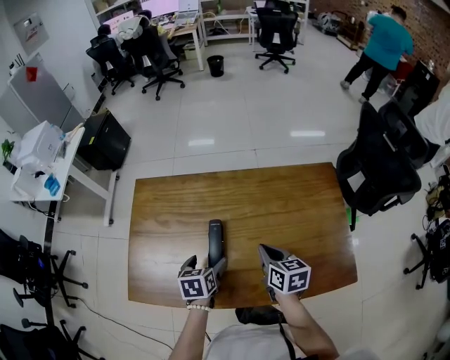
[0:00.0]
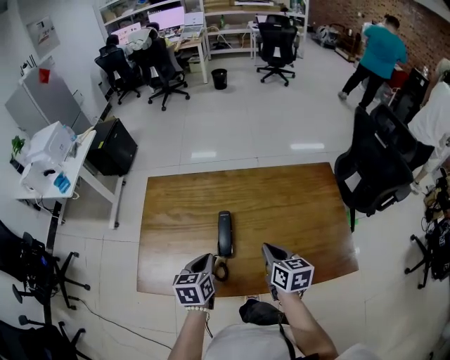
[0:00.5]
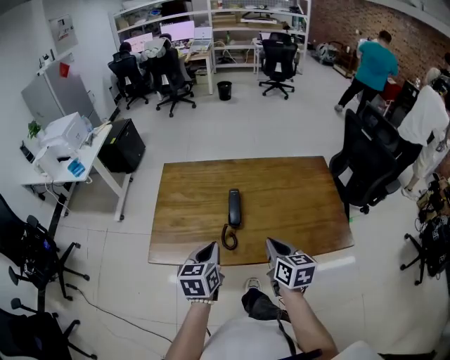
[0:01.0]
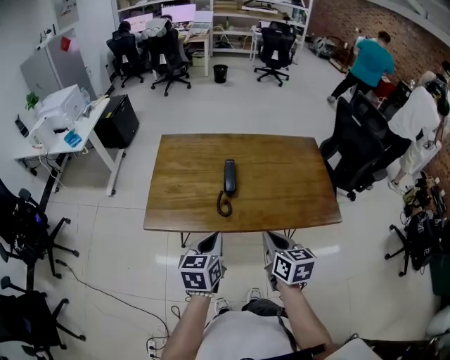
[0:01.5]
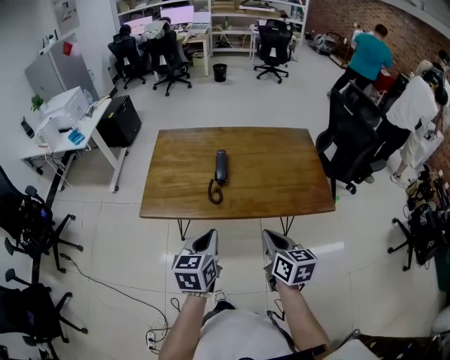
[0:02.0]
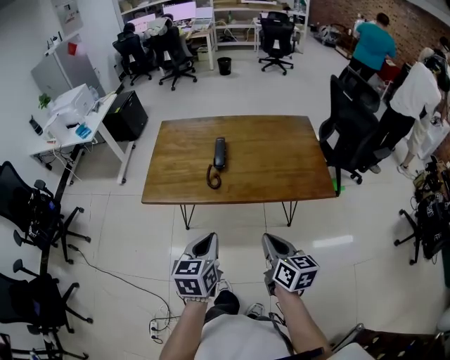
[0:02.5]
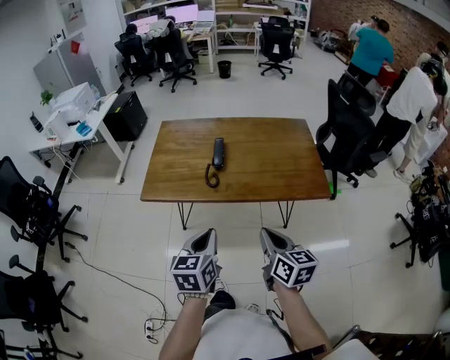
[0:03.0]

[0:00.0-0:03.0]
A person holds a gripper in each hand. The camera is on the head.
0:00.0 to 0:01.5: The left gripper heads backward and upward, covering roughly 30 cm, changes its angle by about 30 degrees, and closes its fingers. The right gripper travels backward by roughly 25 cm.
0:01.5 to 0:03.0: The two grippers go about 15 cm backward.

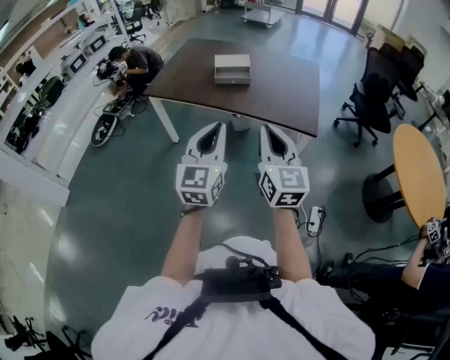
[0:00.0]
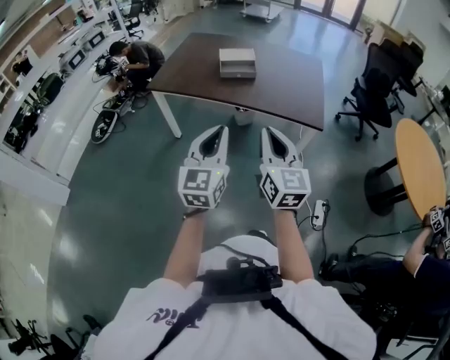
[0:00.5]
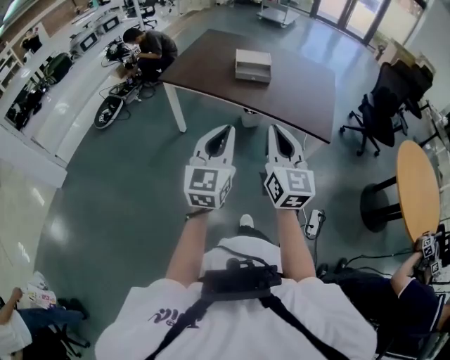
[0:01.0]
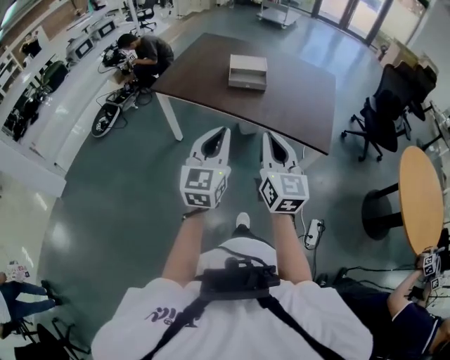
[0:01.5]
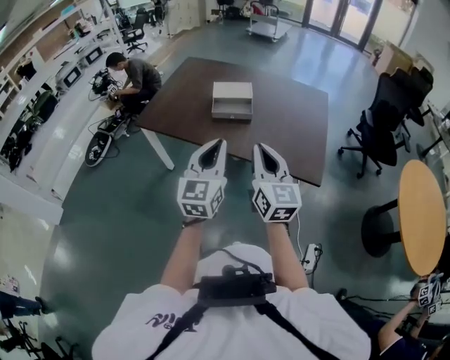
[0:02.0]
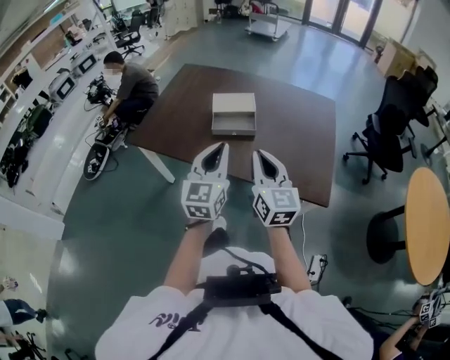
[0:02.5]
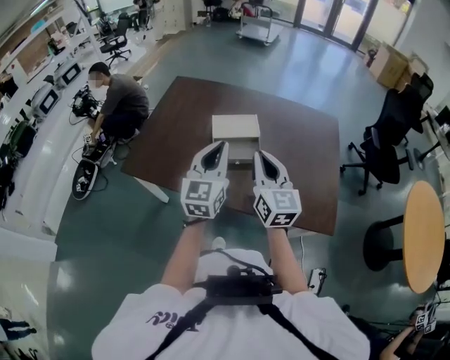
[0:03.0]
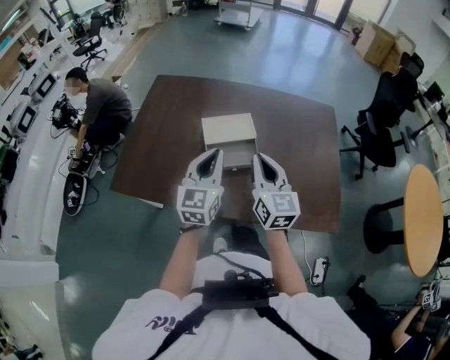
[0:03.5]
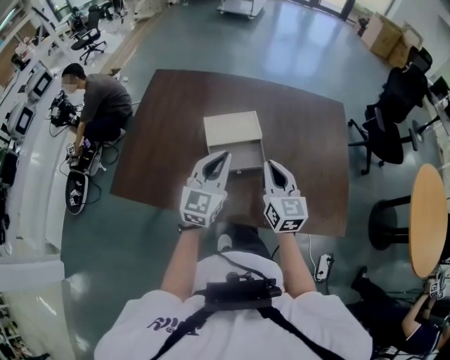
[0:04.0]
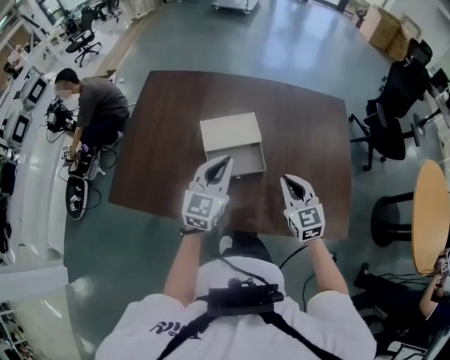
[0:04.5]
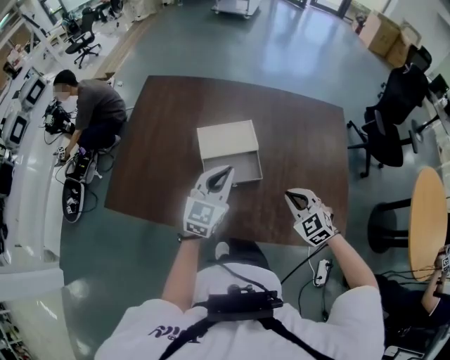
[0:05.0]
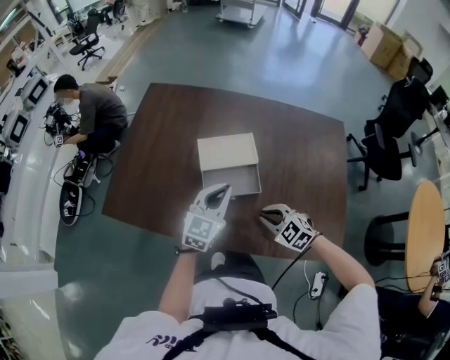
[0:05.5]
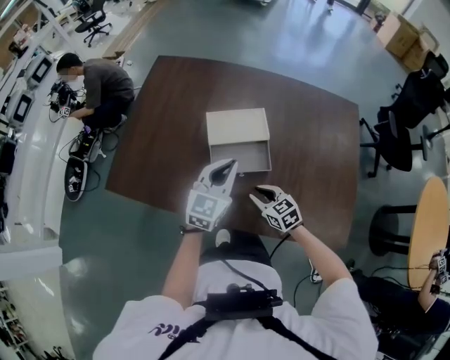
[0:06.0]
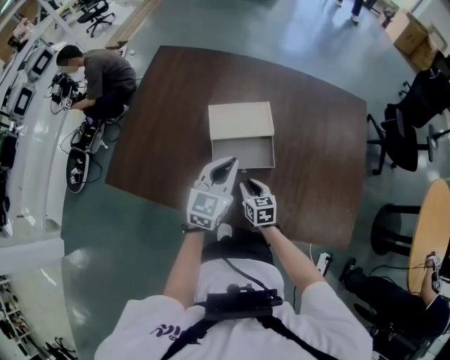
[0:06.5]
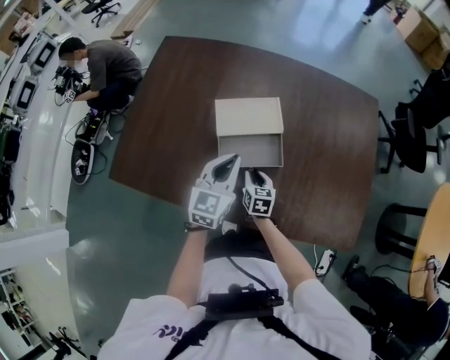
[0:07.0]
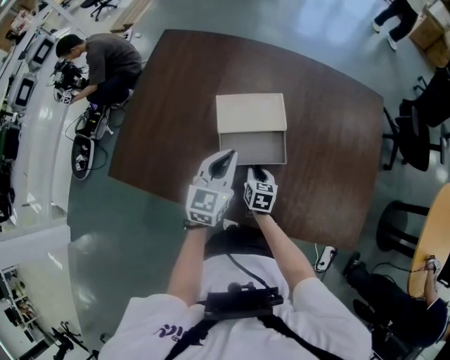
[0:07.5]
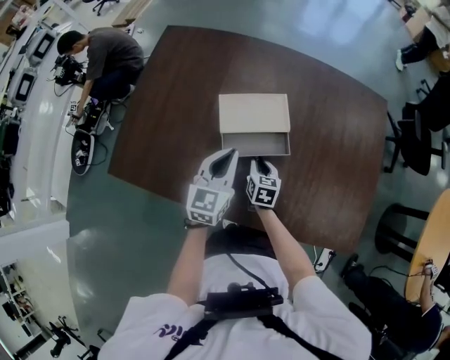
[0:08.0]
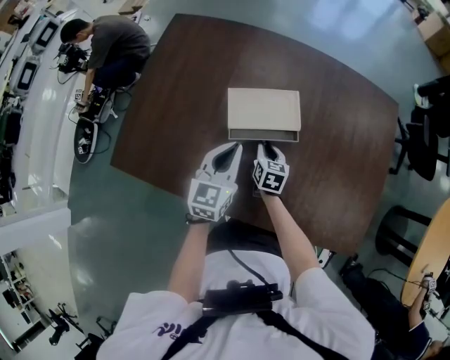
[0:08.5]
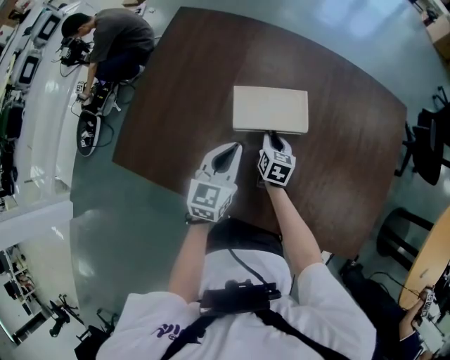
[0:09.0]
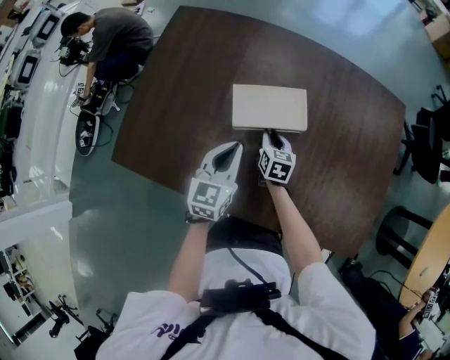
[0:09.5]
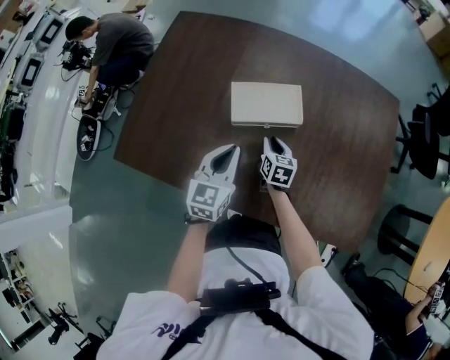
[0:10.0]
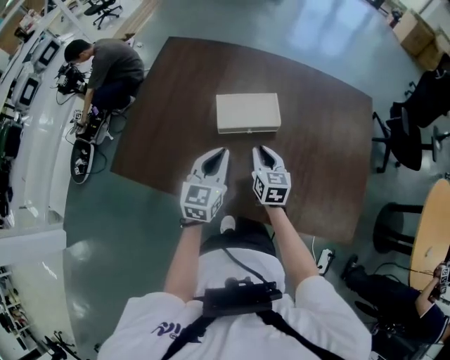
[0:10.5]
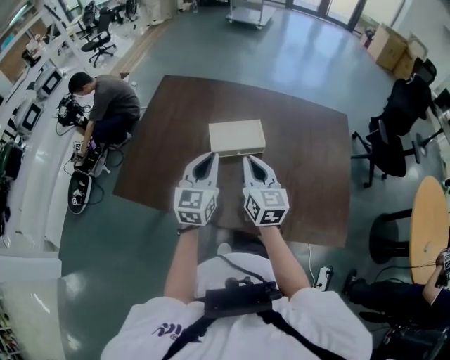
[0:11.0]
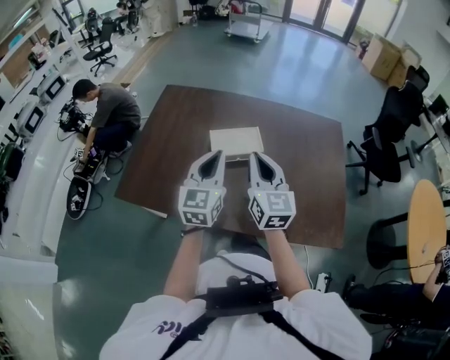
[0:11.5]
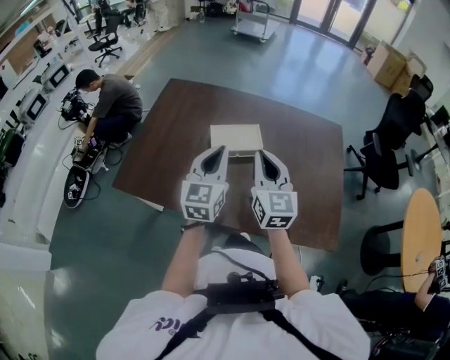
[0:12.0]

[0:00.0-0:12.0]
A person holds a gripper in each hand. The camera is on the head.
0:00.0 to 0:02.0: The grippers both shift forward by approximately 25 cm.
0:02.0 to 0:04.0: The pair of grippers is taken forward, some 40 cm.
0:04.0 to 0:06.0: The left gripper shifts about 10 cm downward, while the right gripper shifts about 25 cm downward, changes its angle by some 50 degrees, and opens its fingers.
0:06.0 to 0:08.0: The right gripper heads forward and downward, covering about 15 cm, and turns by roughly 40 degrees. The left gripper travels downward by about 5 cm.
0:10.0 to 0:12.0: The right gripper moves upward and backward, roughly 40 cm, and tips its fingers upward by approximately 40 degrees. The left gripper shifts about 20 cm upward and backward.

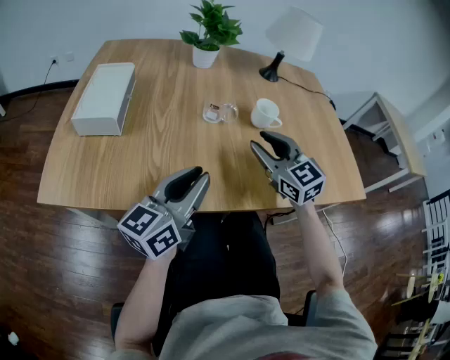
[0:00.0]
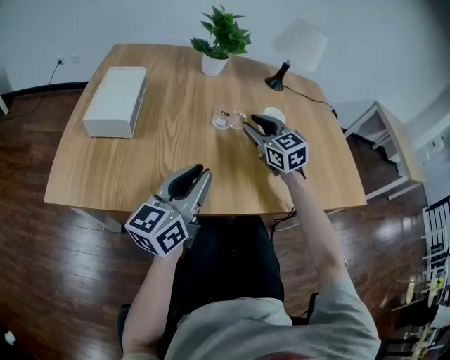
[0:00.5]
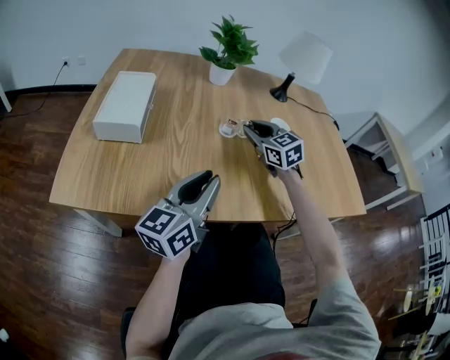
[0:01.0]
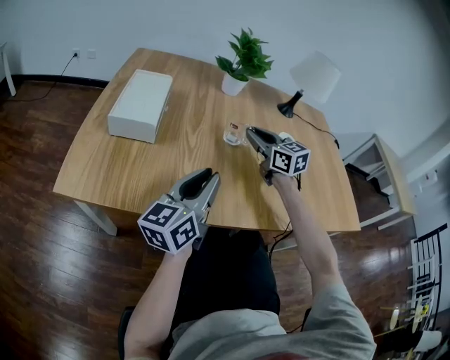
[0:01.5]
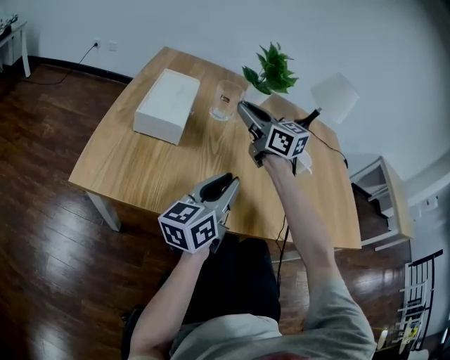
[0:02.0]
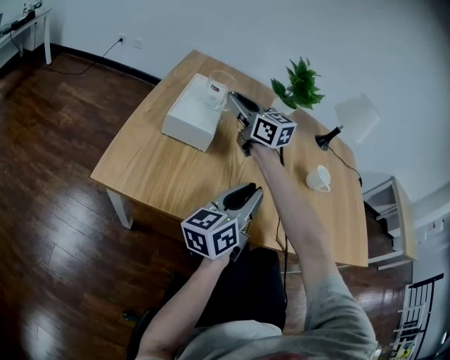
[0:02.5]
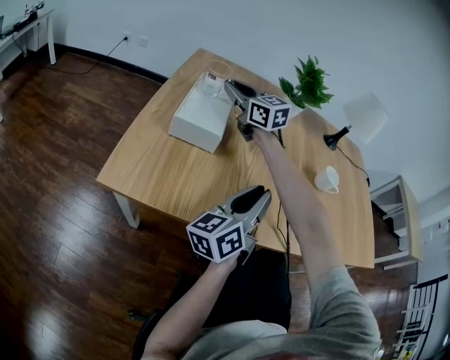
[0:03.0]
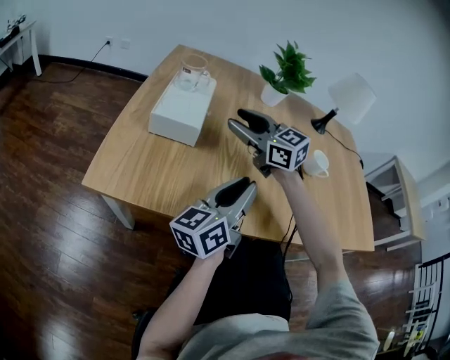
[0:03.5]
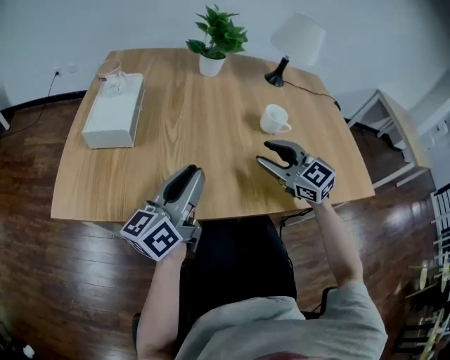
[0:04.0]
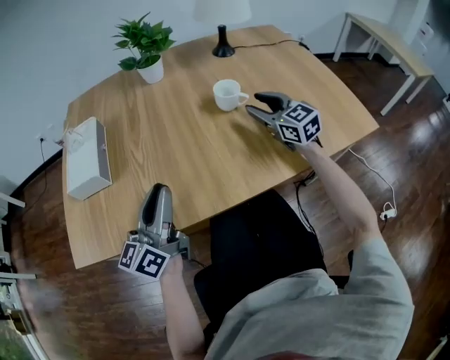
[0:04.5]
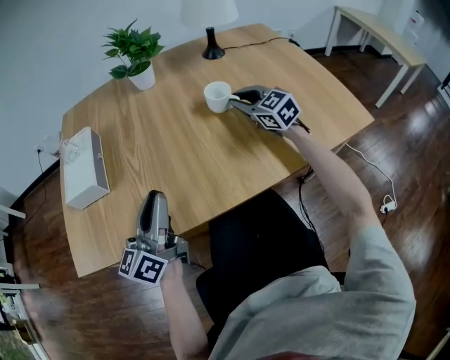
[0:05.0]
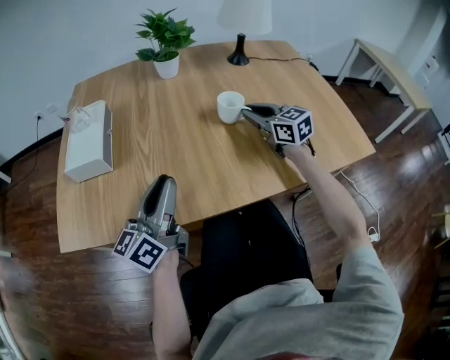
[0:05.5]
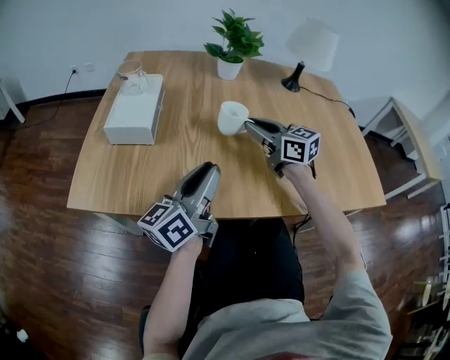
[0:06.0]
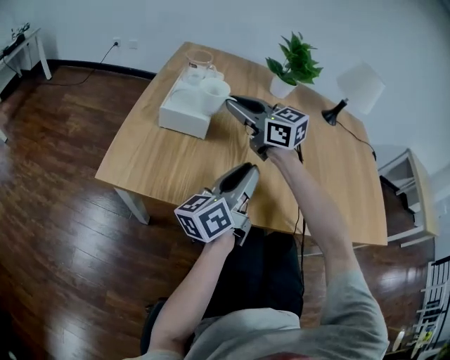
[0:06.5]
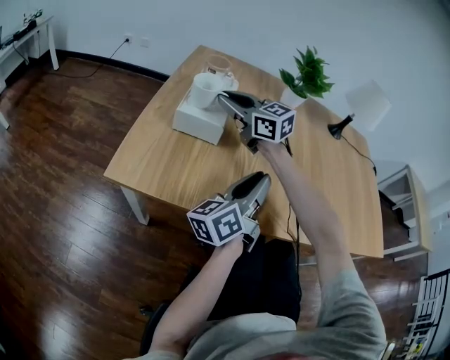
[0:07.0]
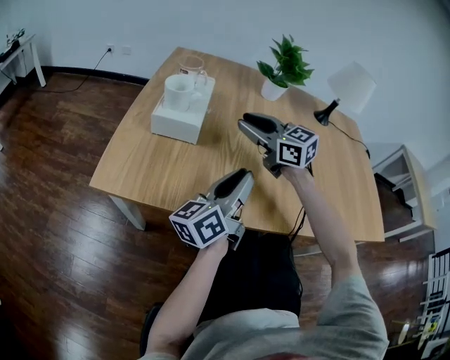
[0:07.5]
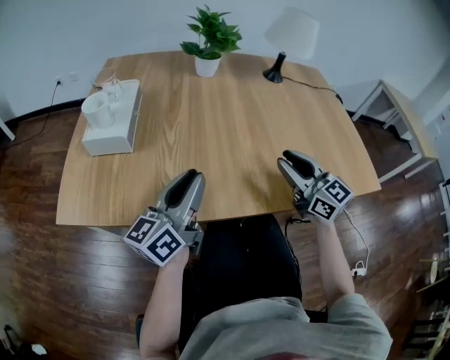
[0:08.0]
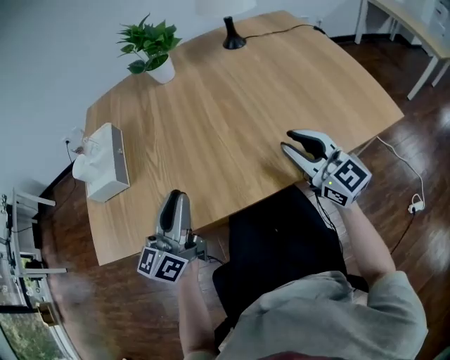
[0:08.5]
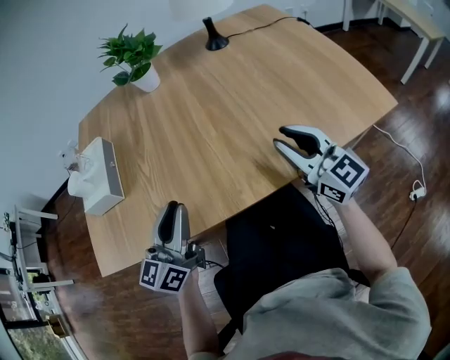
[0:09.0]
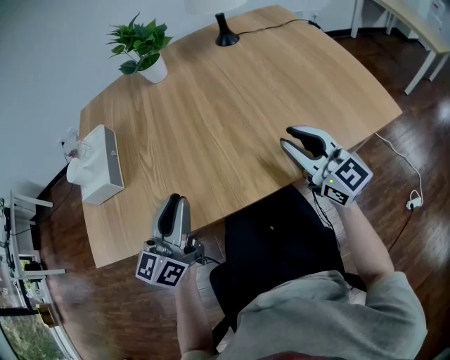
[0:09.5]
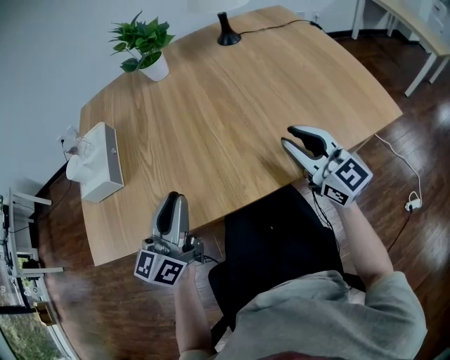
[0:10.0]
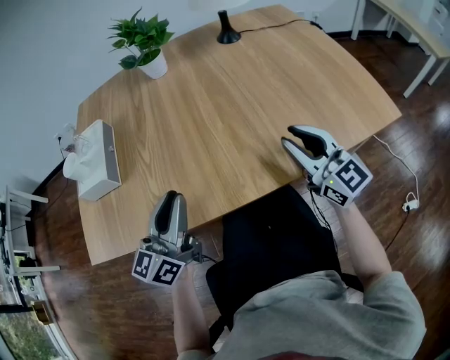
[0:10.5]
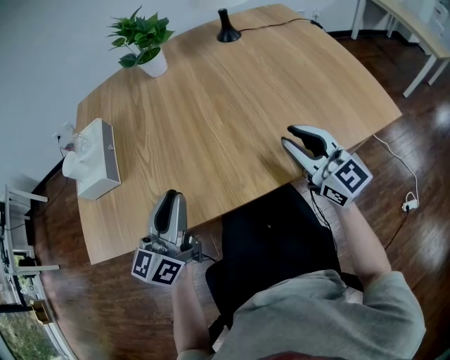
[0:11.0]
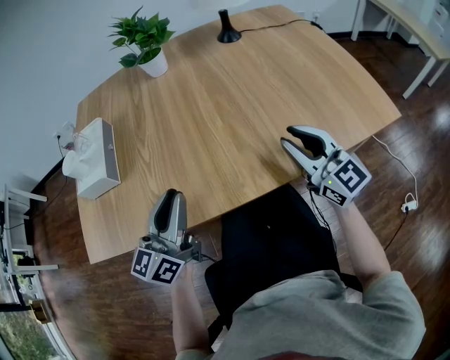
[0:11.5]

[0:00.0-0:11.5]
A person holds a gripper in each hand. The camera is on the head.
0:00.0 to 0:02.0: The left gripper heads to the left, covering about 5 cm. The right gripper shifts approximately 25 cm to the left and forward, changes its angle by approximately 30 degrees, and closes its fingers.
0:02.0 to 0:04.0: The right gripper heads backward, to the right and downward, covering approximately 25 cm, rotates roughly 20 degrees, and opens its fingers.
0:04.0 to 0:06.0: The right gripper travels forward by approximately 10 cm, travels to the right and back again, roughly 15 cm each way, rotates some 30 degrees, and closes its fingers.
0:06.0 to 0:07.5: The right gripper shifts some 15 cm to the left.
0:07.5 to 0:09.5: The right gripper is displaced to the right and backward by about 40 cm, and turns by roughly 40 degrees, while the left gripper shifts some 5 cm to the right, and rotates approximately 30 degrees.
0:09.5 to 0:11.5: The two grippers keep their place.
